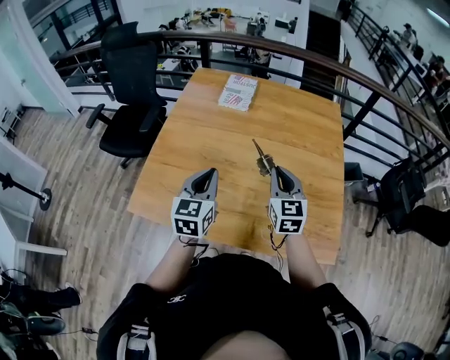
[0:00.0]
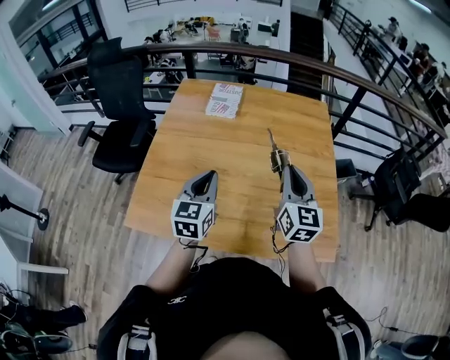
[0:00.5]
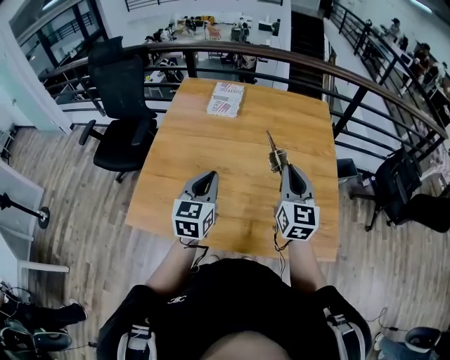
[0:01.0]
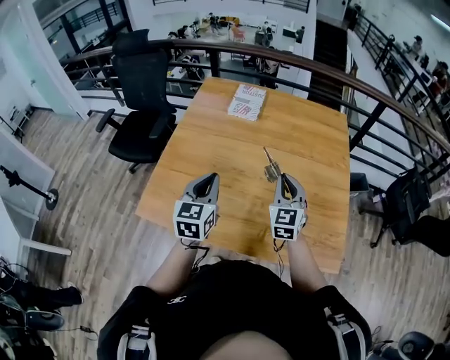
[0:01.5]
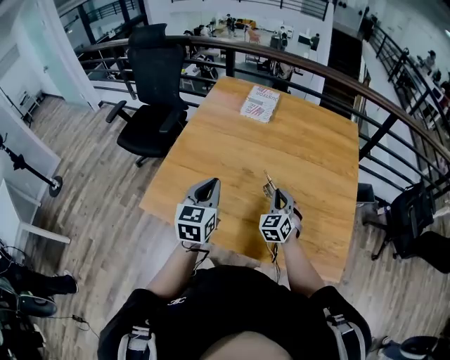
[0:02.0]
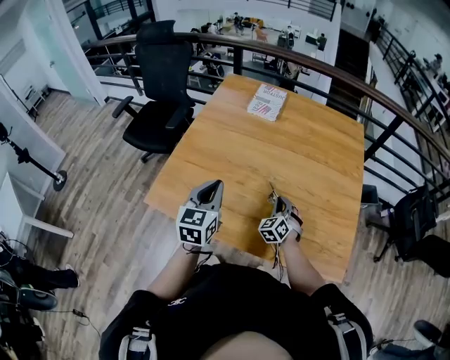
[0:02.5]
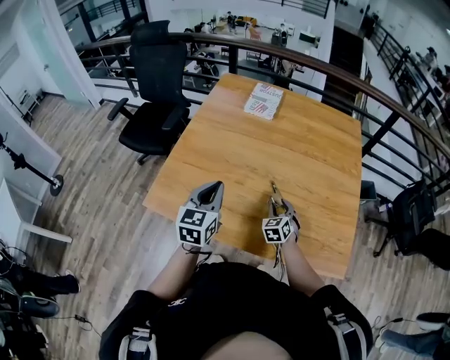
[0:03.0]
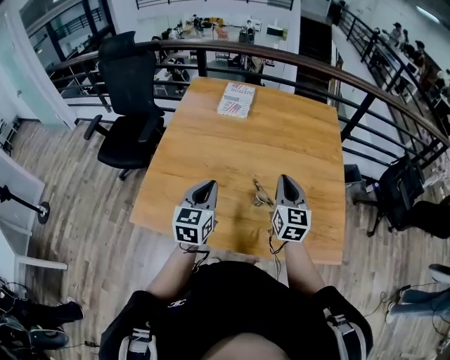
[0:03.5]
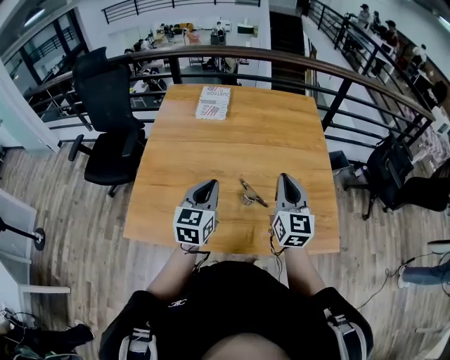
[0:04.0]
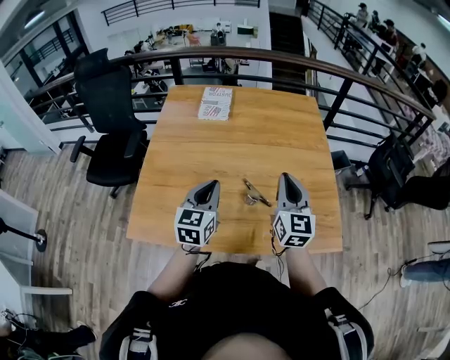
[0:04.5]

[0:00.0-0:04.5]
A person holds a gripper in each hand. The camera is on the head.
0:00.0 to 0:02.0: The right gripper is displaced downward by approximately 15 cm, and swivels approximately 30 degrees.
0:02.0 to 0:04.5: The left gripper shifts roughly 5 cm to the right. The right gripper travels upward and to the right by roughly 20 cm, rotates roughly 40 degrees, and opens and closes again.

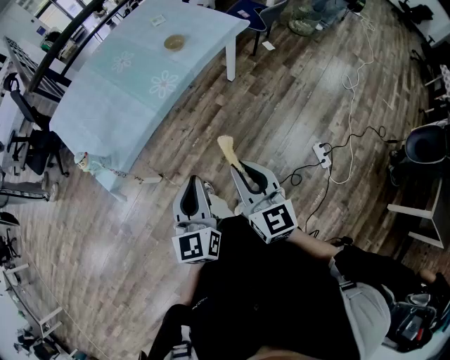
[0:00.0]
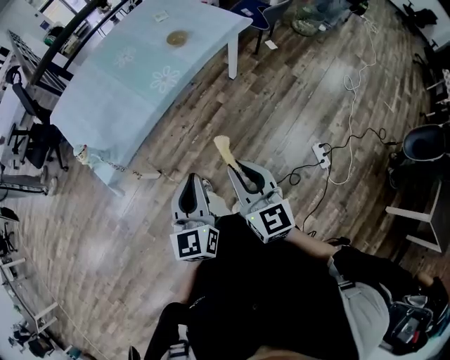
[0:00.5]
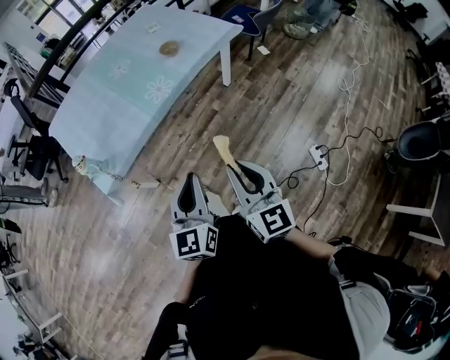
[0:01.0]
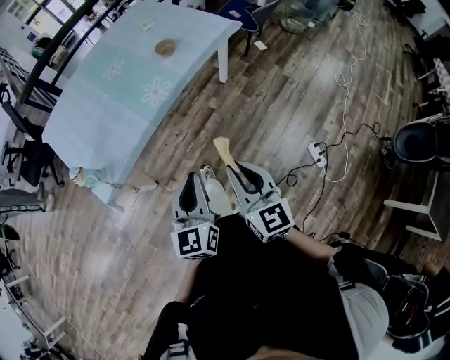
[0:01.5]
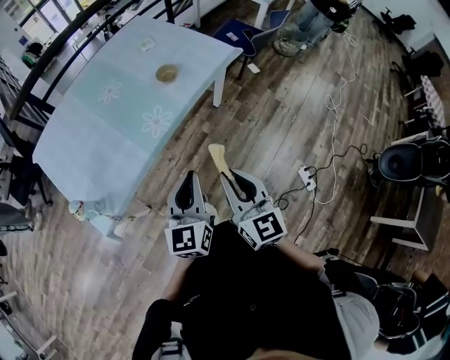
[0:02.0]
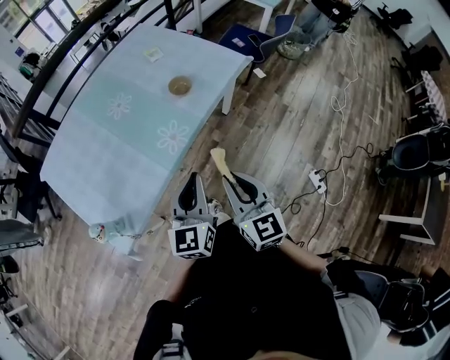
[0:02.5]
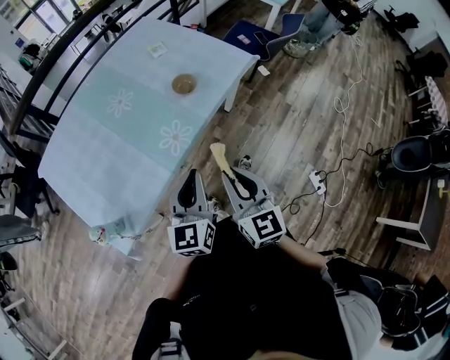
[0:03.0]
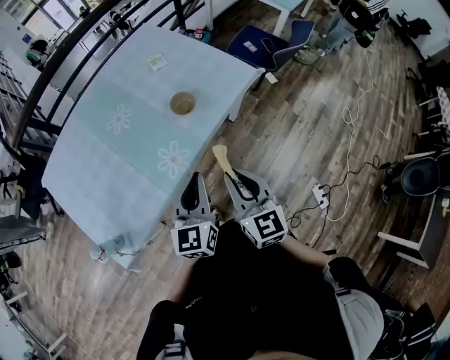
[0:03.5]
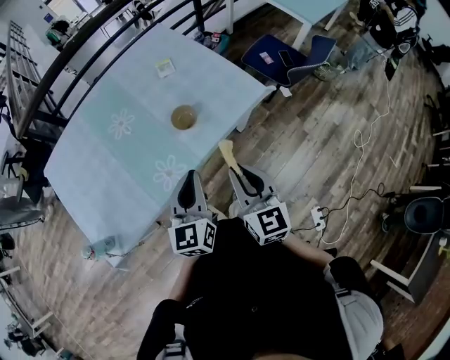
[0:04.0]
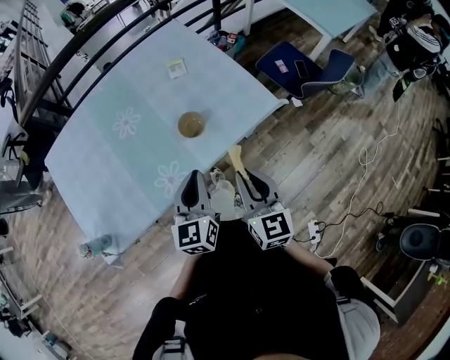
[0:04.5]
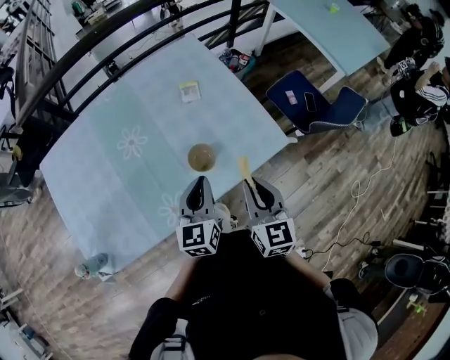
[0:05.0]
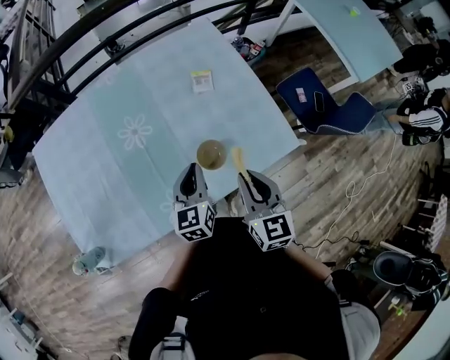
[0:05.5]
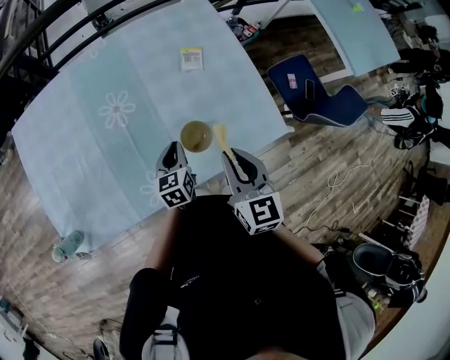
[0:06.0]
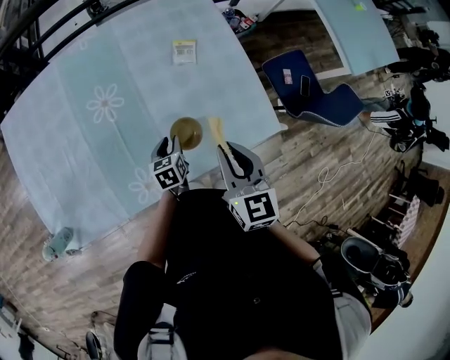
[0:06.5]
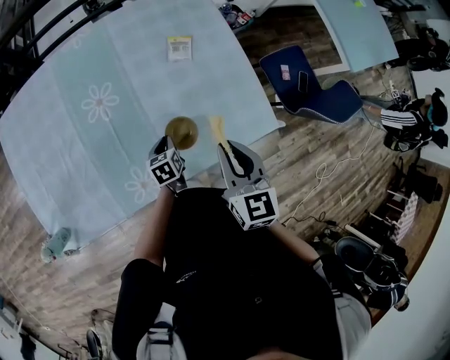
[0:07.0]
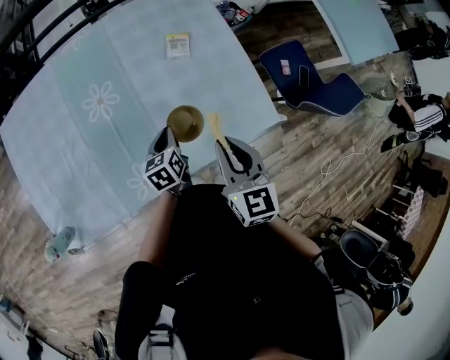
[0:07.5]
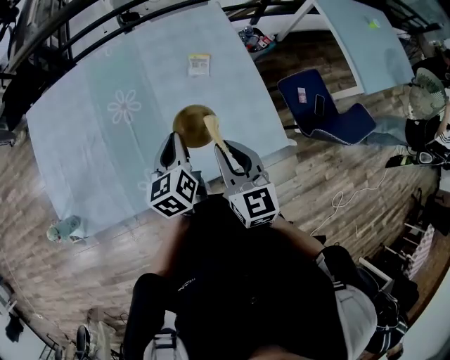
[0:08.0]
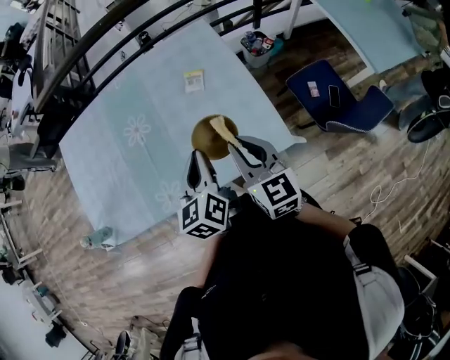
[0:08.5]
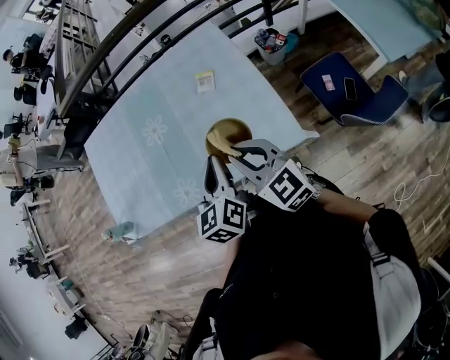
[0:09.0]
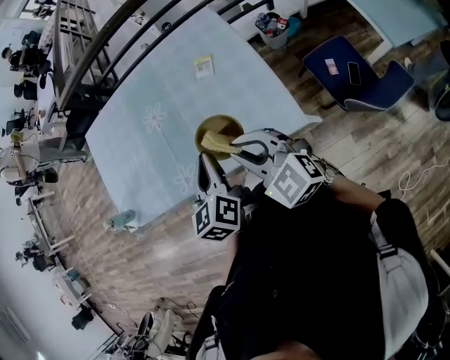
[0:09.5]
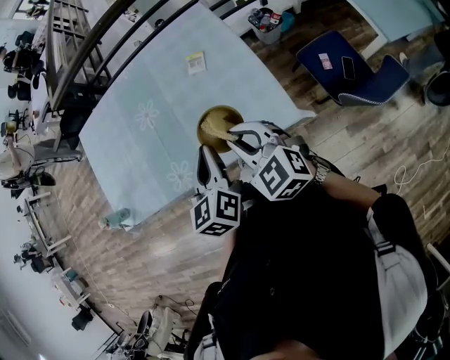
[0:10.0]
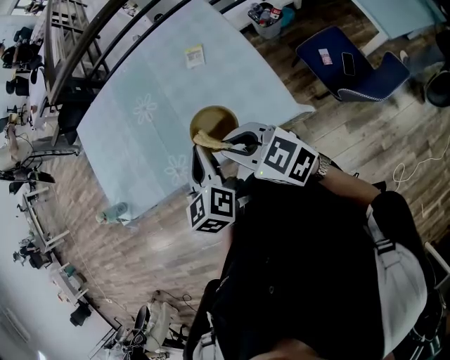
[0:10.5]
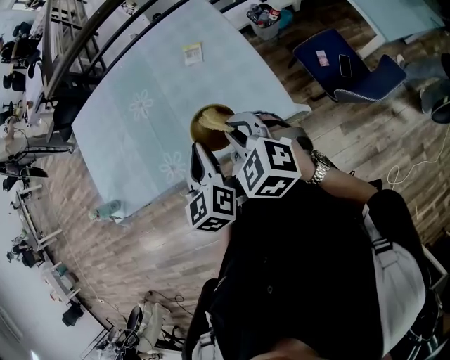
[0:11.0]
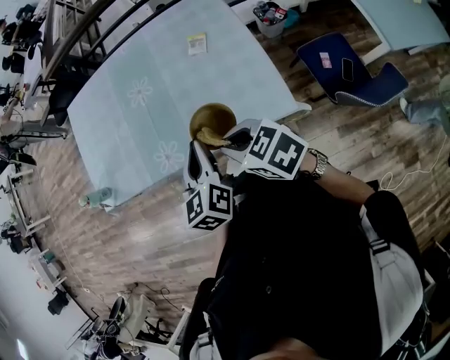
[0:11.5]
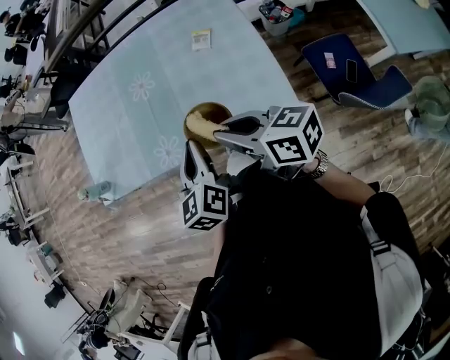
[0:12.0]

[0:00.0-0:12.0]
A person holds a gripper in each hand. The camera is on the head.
0:00.0 to 0:02.0: The grippers both shift forward by approximately 15 cm.
0:02.0 to 0:04.0: Both grippers move forward, about 30 cm.
0:04.0 to 0:06.0: The right gripper heads forward, covering about 25 cm; the left gripper heads forward and downward, covering some 30 cm, and swivels about 30 degrees.
0:06.0 to 0:08.0: The left gripper goes approximately 15 cm upward, and opens, then closes again.
0:08.0 to 0:10.0: The left gripper travels backward, to the right and upward by some 20 cm; the right gripper goes some 10 cm backward and to the right, and changes its angle by roughly 30 degrees.
0:10.0 to 0:12.0: The left gripper moves to the left, approximately 5 cm. The right gripper shifts by roughly 5 cm, and rolls clockwise, seen from behind, by some 40 degrees.

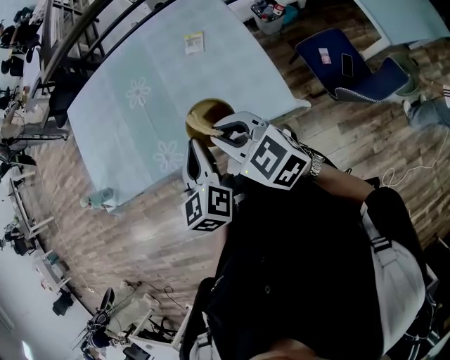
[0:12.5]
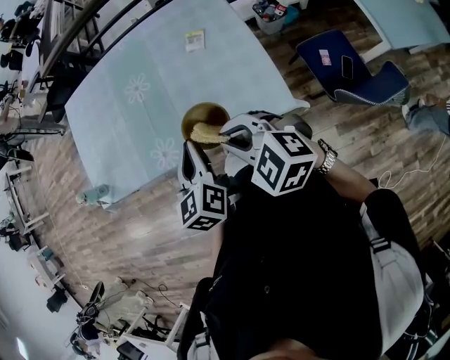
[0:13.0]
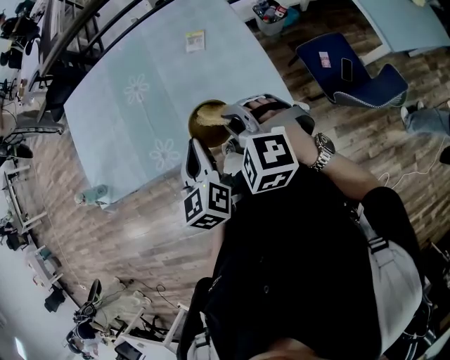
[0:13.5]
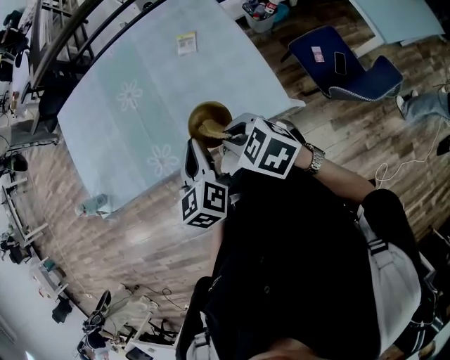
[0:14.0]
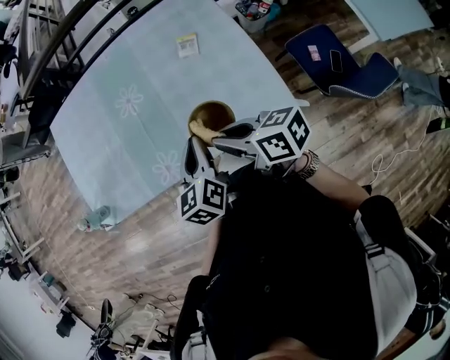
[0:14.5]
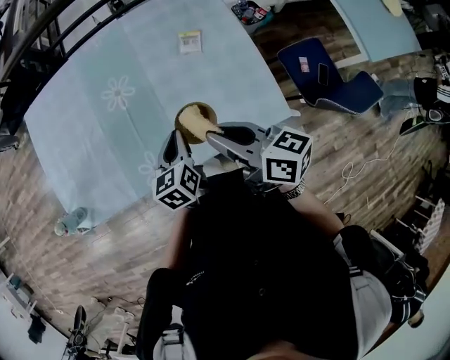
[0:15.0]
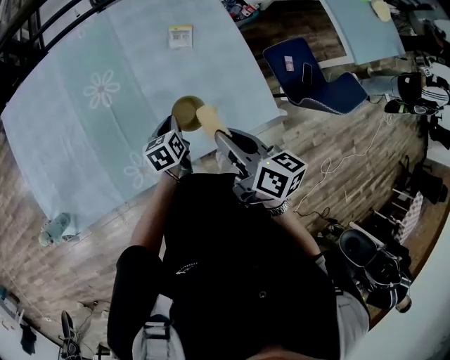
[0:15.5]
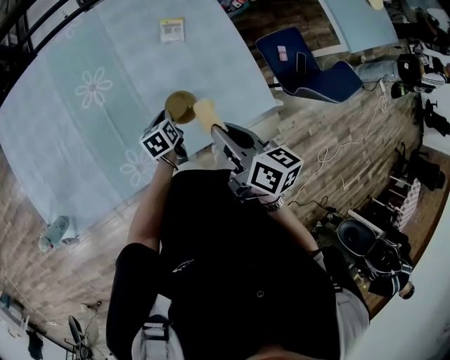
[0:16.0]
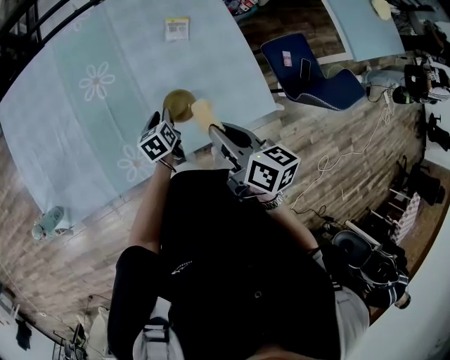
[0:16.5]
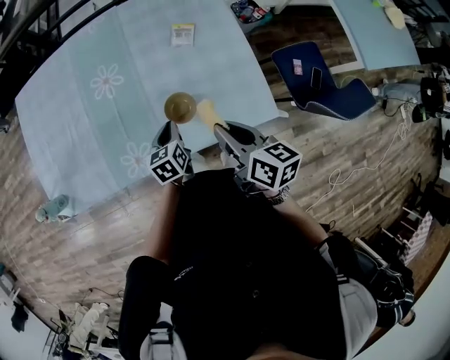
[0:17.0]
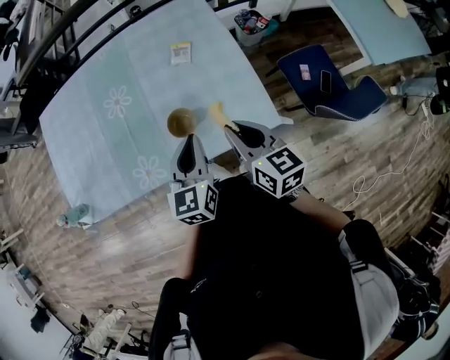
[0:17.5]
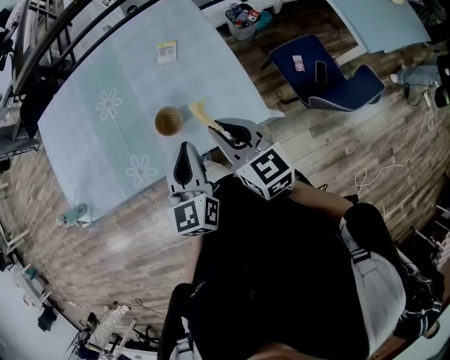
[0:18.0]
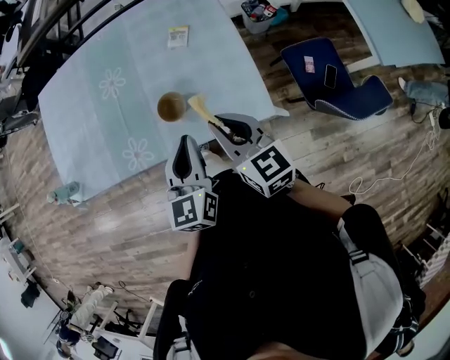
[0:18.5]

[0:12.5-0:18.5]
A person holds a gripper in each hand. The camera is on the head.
0:12.5 to 0:14.5: The right gripper moves approximately 5 cm, and rolls clockwise, seen from behind, by roughly 40 degrees. The left gripper heads forward and downward, covering approximately 10 cm.
0:14.5 to 0:16.5: The right gripper rotates about 40 degrees. Meanwhile the left gripper is displaced downward by about 25 cm, rotates approximately 30 degrees, and opens up.
0:16.5 to 0:18.5: The left gripper goes approximately 35 cm upward, backward and to the right, turns by approximately 40 degrees, and closes. The right gripper moves to the right, some 10 cm, and swivels approximately 40 degrees.

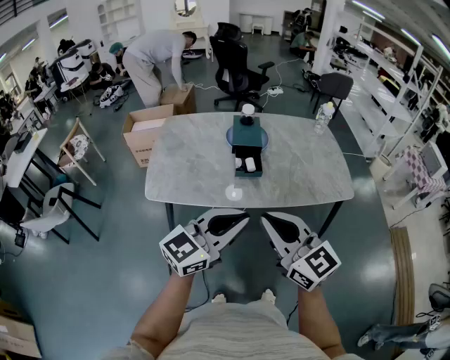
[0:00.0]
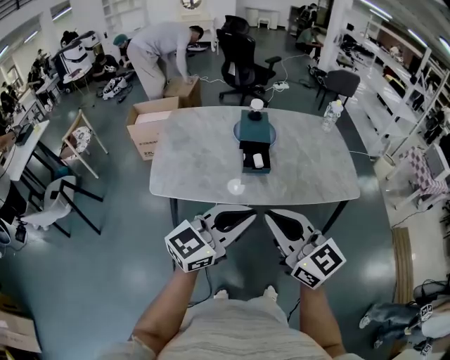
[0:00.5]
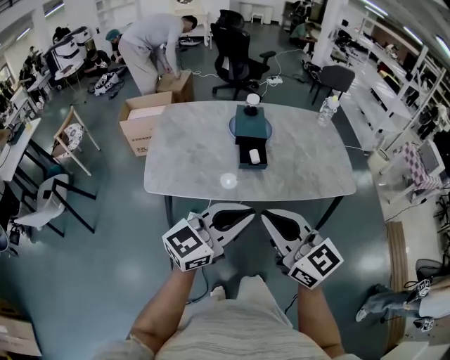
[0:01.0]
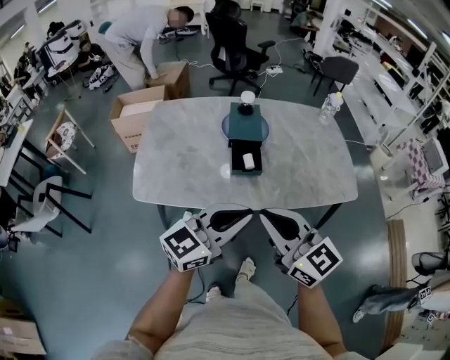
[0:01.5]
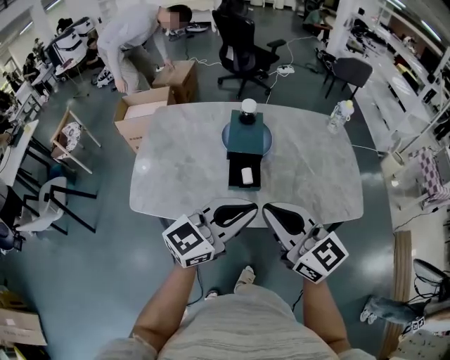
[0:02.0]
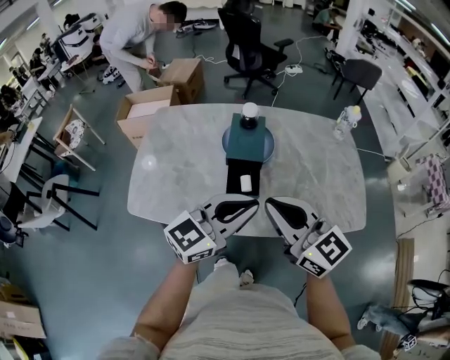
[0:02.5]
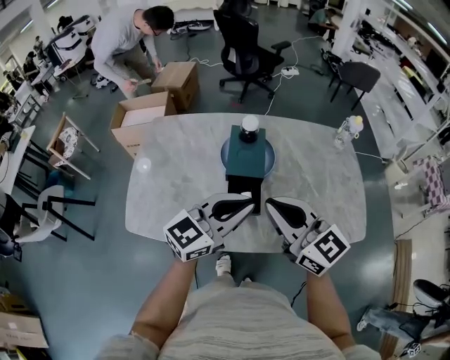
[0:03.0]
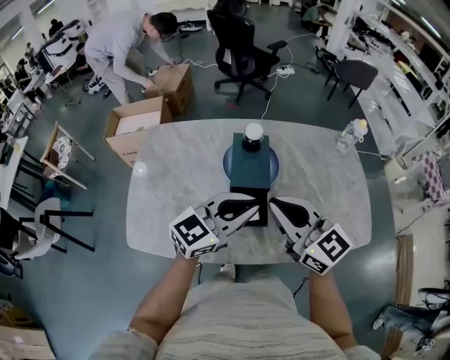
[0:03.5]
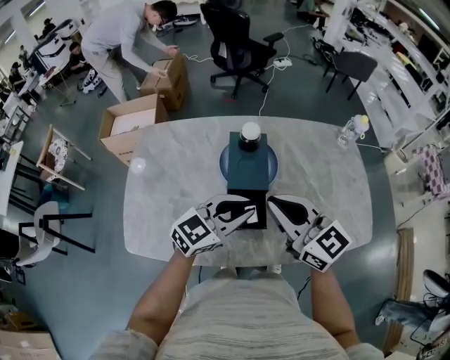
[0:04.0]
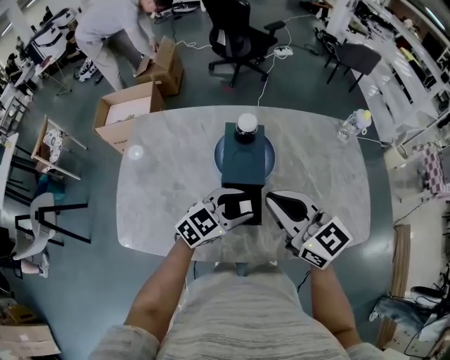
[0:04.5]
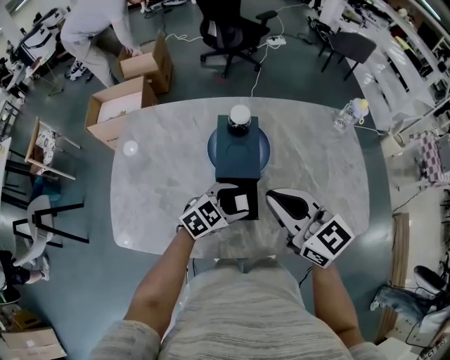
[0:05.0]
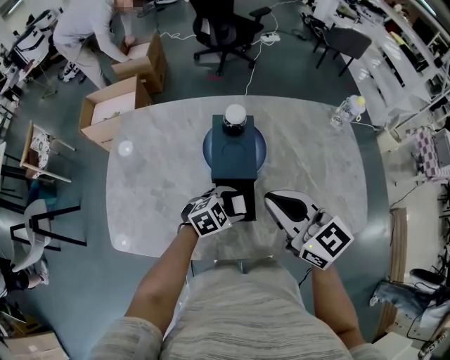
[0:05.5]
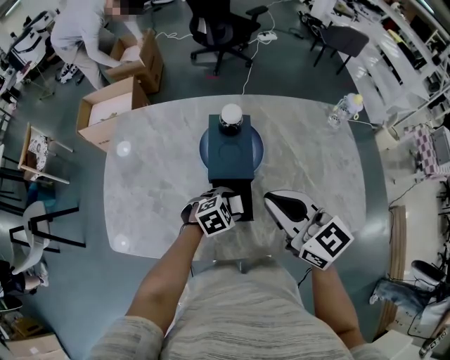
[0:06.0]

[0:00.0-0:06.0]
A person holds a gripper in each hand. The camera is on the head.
0:00.0 to 0:02.0: The grippers both shift forward by about 20 cm.
0:02.0 to 0:04.0: The left gripper goes about 20 cm forward and downward; the right gripper shifts roughly 20 cm forward.
0:04.0 to 0:06.0: The left gripper moves downward, approximately 20 cm, angles its fingers downward, by roughly 40 degrees, and opens its fingers.
